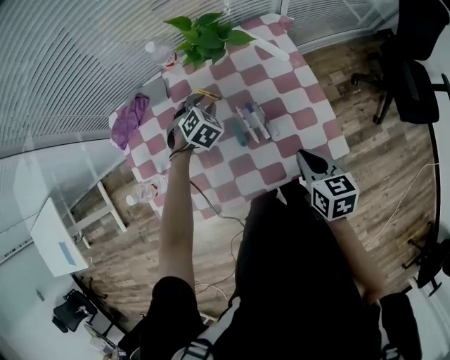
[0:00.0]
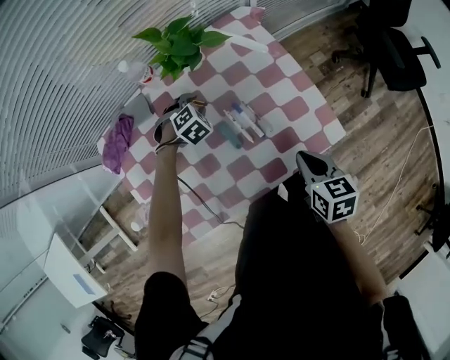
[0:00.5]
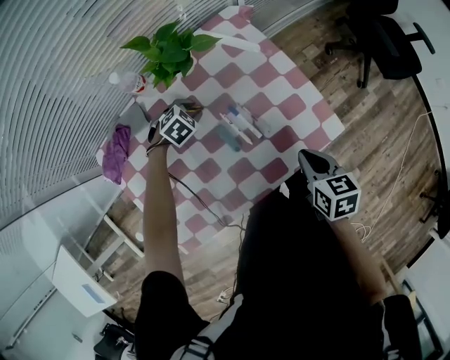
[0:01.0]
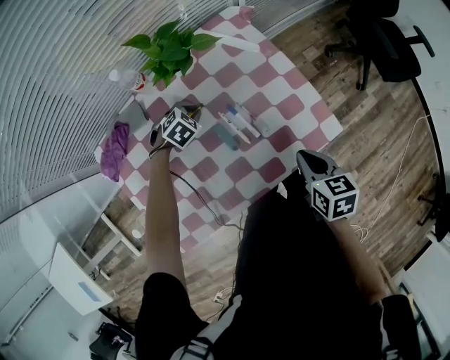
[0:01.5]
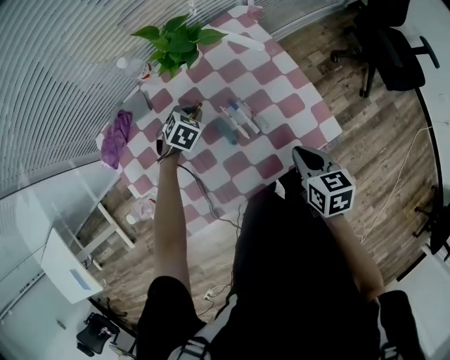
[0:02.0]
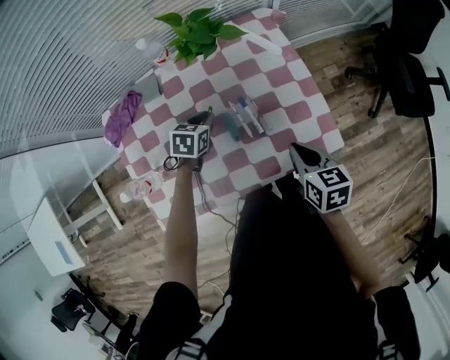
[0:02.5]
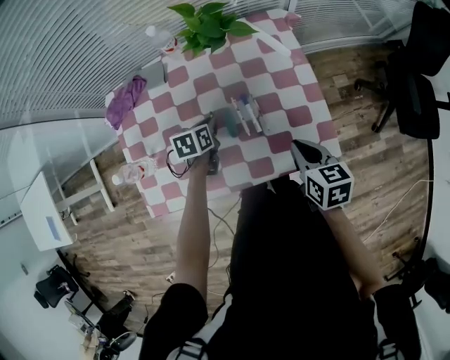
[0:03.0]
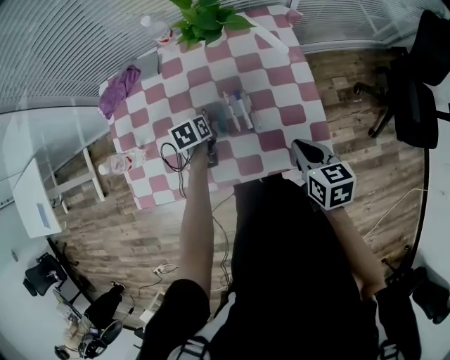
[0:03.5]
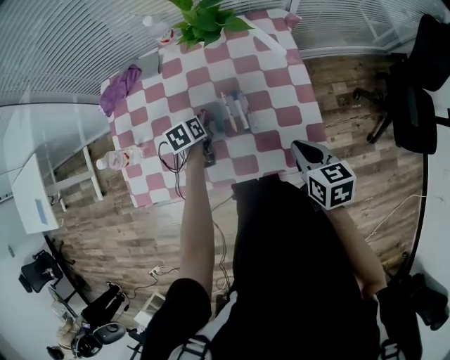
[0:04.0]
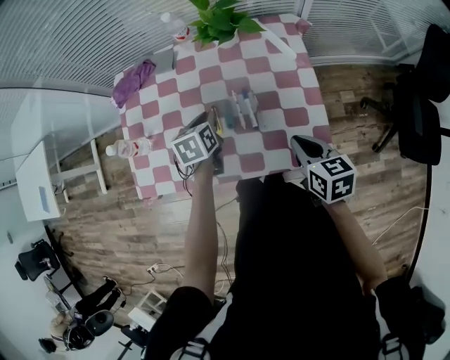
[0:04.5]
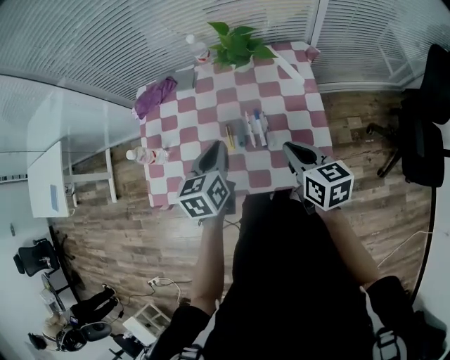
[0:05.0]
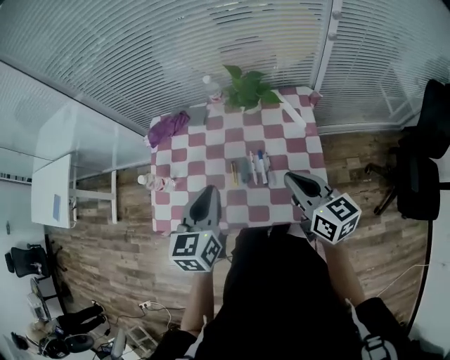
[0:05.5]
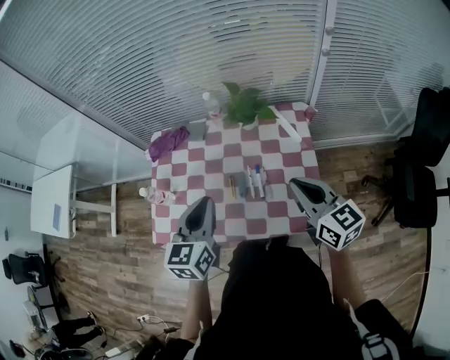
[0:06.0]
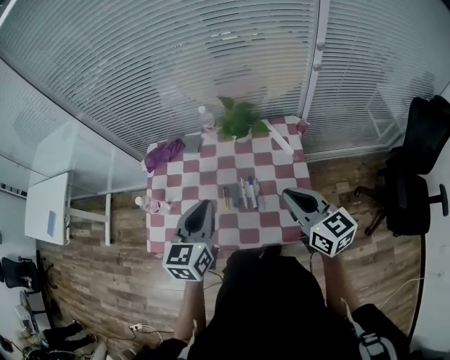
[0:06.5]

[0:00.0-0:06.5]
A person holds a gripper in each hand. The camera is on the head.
0:02.0 to 0:04.5: The left gripper ends up approximately 15 cm from where it was, and rotates around the line of its fingers by roughly 70 degrees, counterclockwise from behind. Meanwhile the right gripper changes its angle by about 30 degrees.
0:04.5 to 0:06.5: Both grippers travel together upward, approximately 25 cm. The left gripper rotates approximately 30 degrees, while the right gripper turns by some 30 degrees.

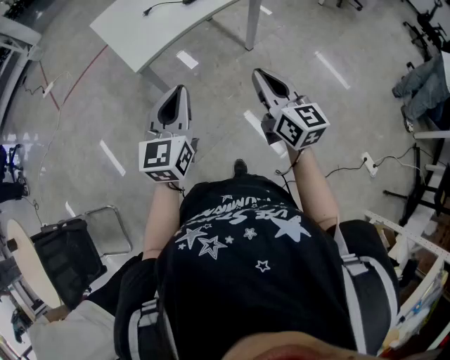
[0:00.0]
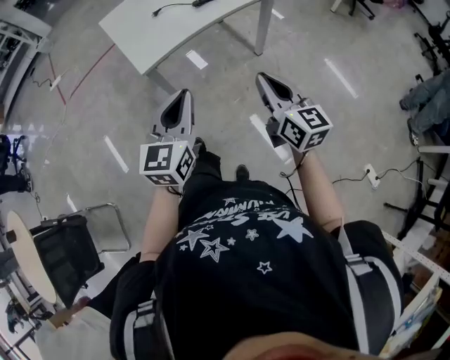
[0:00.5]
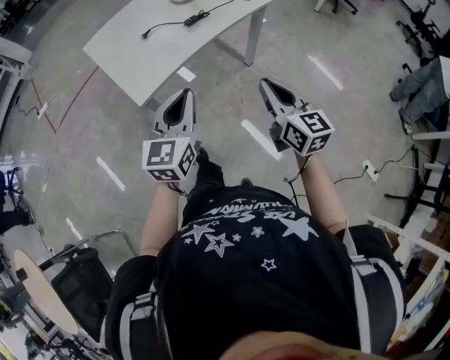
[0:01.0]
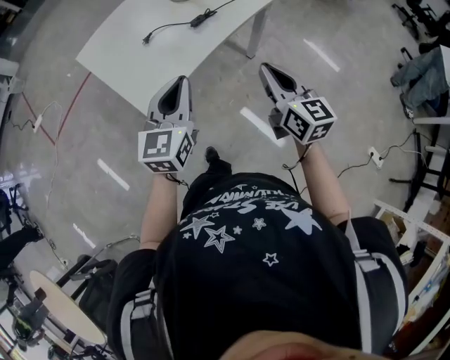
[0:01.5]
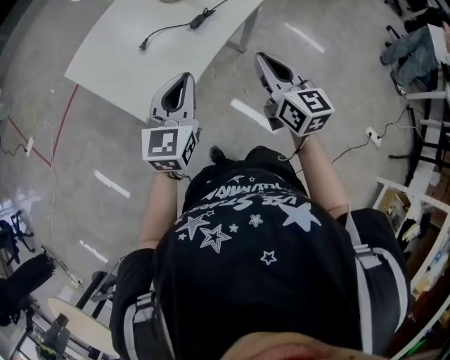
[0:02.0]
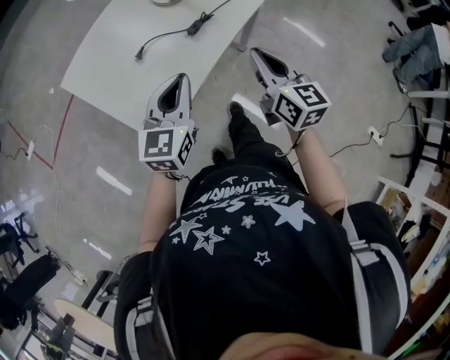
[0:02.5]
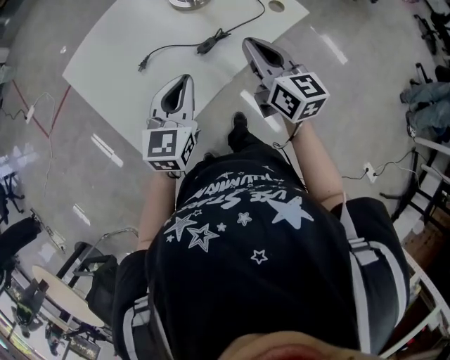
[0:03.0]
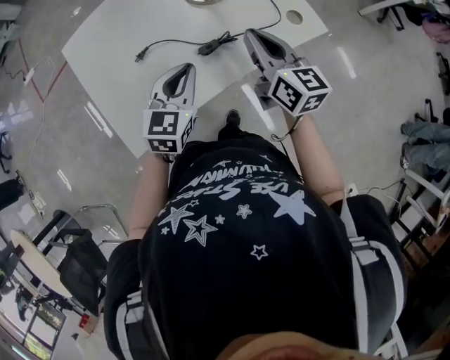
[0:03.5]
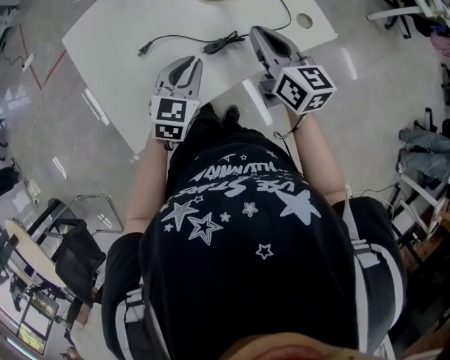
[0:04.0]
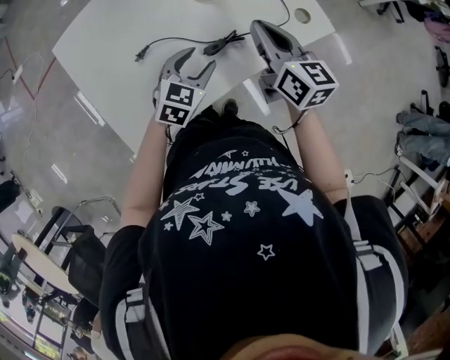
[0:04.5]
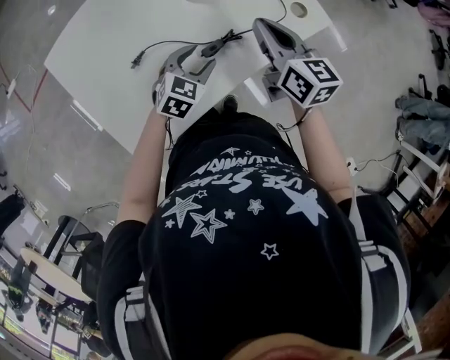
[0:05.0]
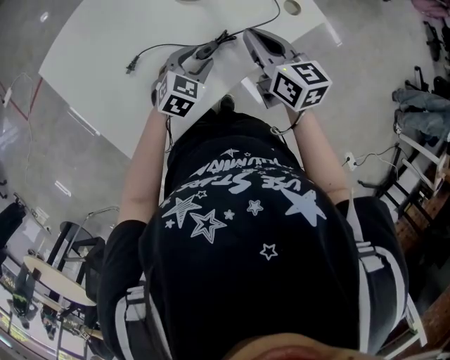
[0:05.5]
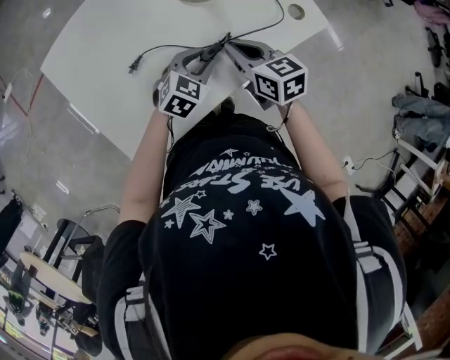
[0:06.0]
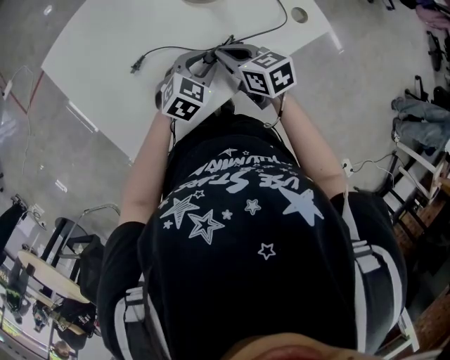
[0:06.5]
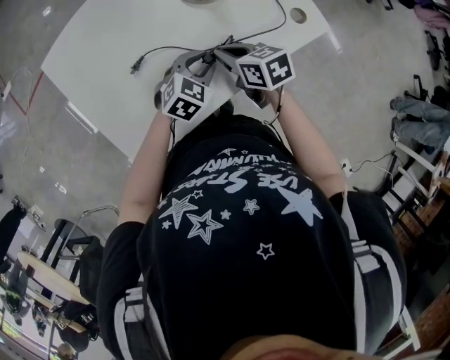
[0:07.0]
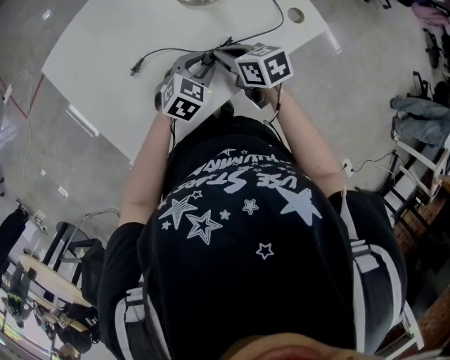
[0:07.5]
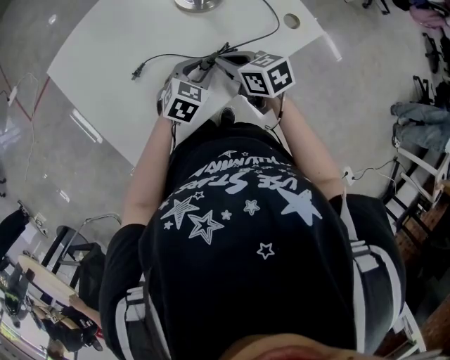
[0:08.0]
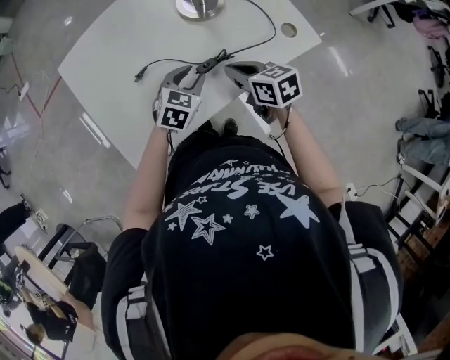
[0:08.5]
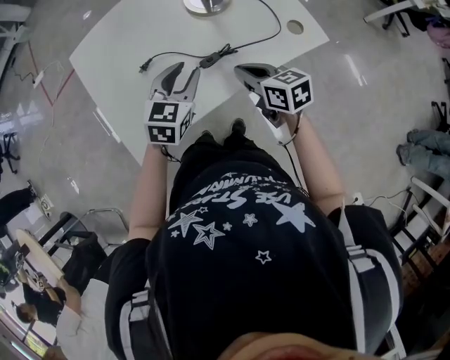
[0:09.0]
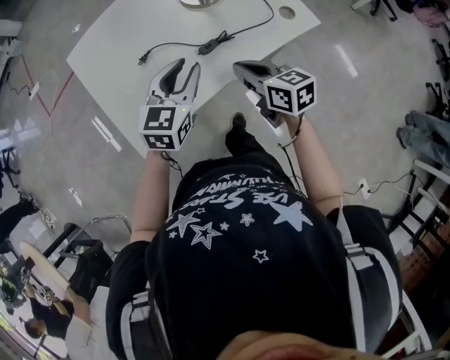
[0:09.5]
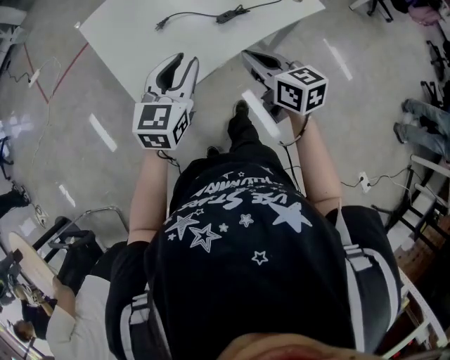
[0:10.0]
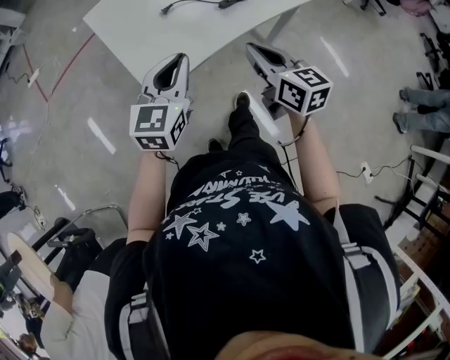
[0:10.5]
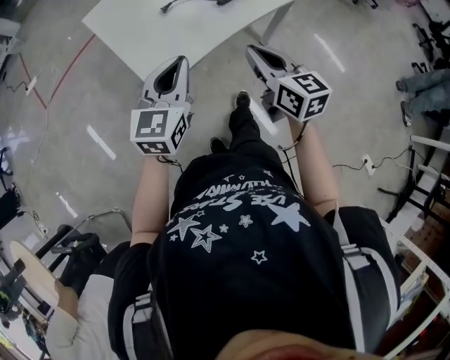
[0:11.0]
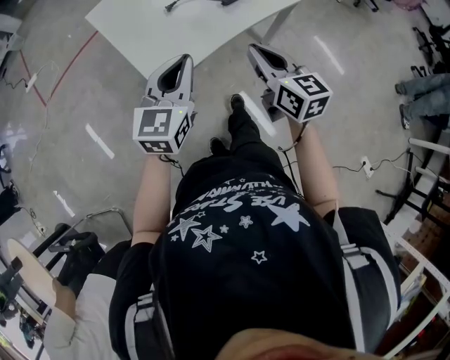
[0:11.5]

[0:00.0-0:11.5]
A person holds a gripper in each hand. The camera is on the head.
0:00.0 to 0:02.0: The left gripper shifts about 30 cm forward, and swivels some 20 degrees. The right gripper moves forward and to the left, approximately 30 cm.
0:02.0 to 0:04.0: The left gripper goes about 25 cm forward and downward, and changes its angle by about 20 degrees. Meanwhile the right gripper is displaced forward by some 30 cm, and swivels roughly 30 degrees.
0:04.0 to 0:06.0: The left gripper travels downward and to the right by roughly 10 cm, turns by roughly 30 degrees, and opens up. The right gripper heads downward, covering approximately 10 cm, and rotates about 20 degrees.
0:06.0 to 0:07.5: The grippers stay close to where they were, moving slightly.
0:07.5 to 0:09.5: The right gripper travels backward and upward by approximately 15 cm; the left gripper travels upward and backward by some 15 cm, and swivels roughly 30 degrees.
0:09.5 to 0:11.5: The right gripper moves backward, to the left and upward, some 25 cm, and rotates approximately 20 degrees; the left gripper is displaced backward and to the left by some 25 cm, and closes up.

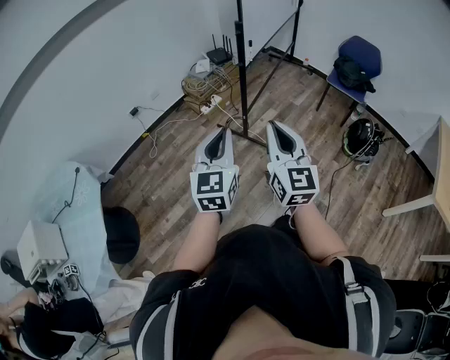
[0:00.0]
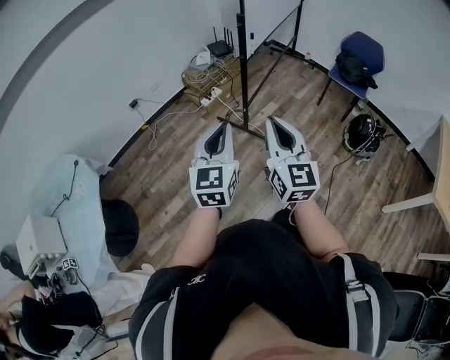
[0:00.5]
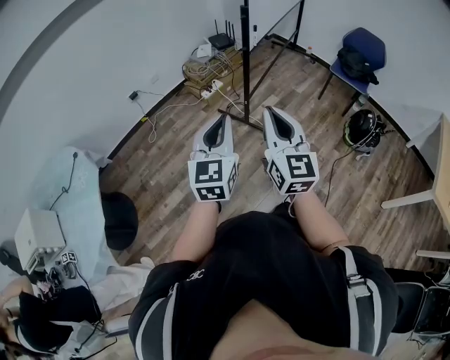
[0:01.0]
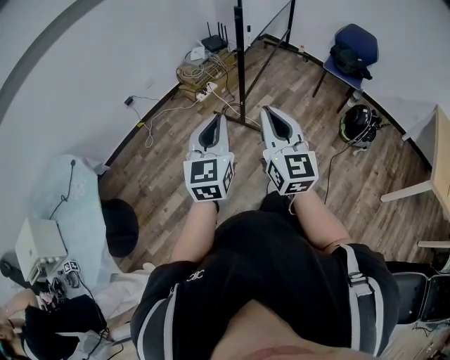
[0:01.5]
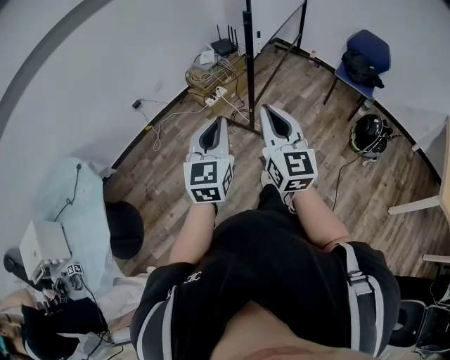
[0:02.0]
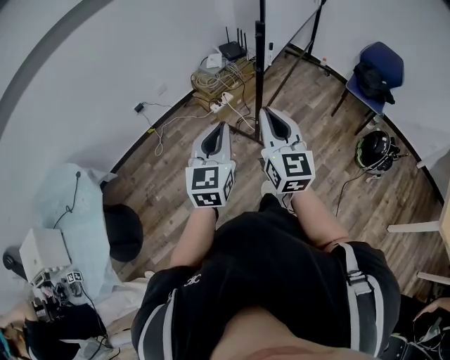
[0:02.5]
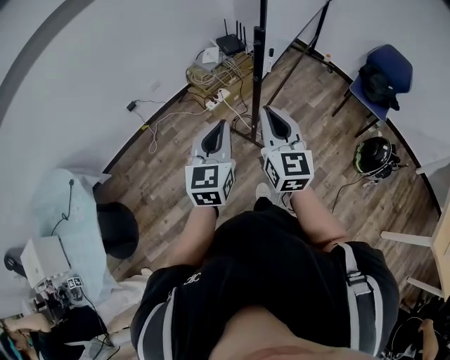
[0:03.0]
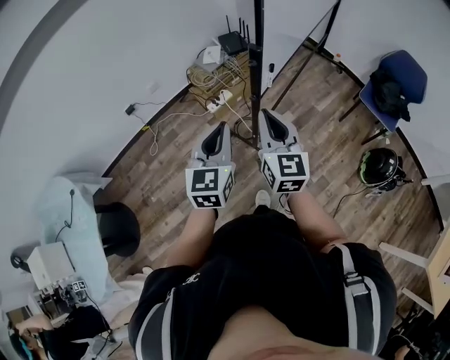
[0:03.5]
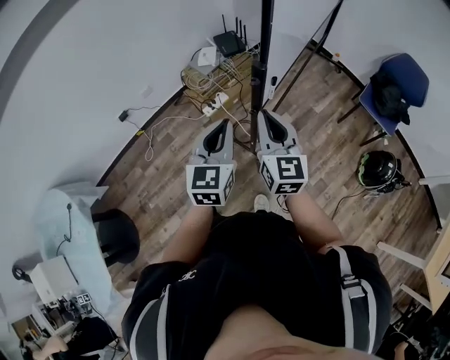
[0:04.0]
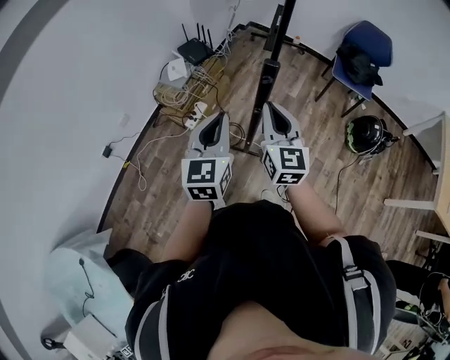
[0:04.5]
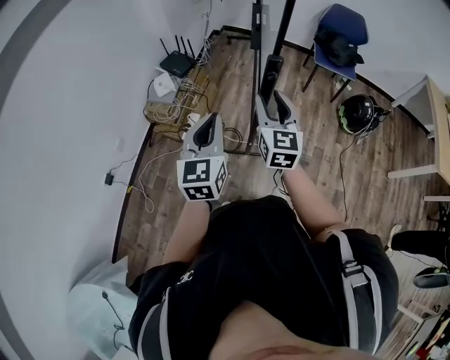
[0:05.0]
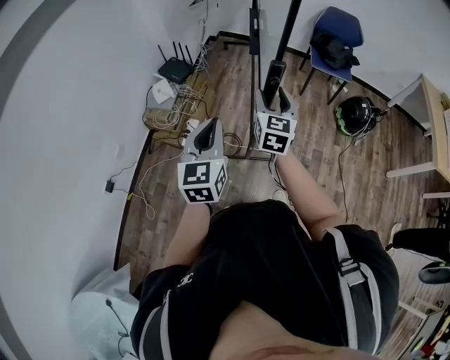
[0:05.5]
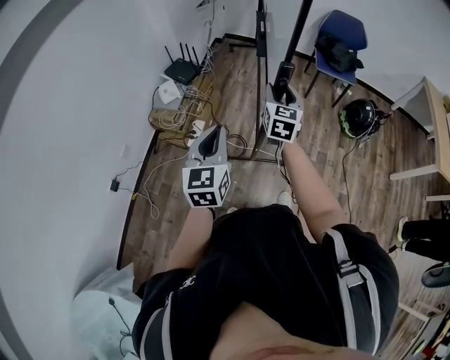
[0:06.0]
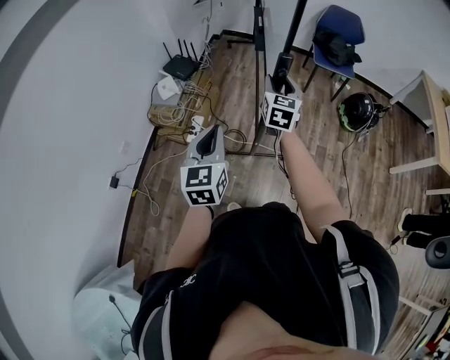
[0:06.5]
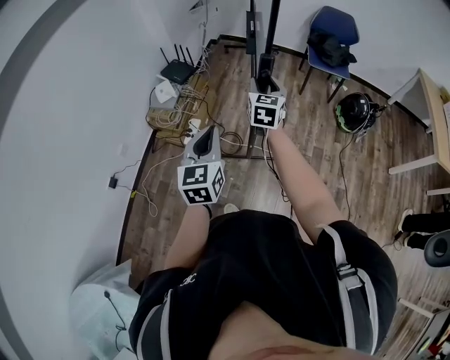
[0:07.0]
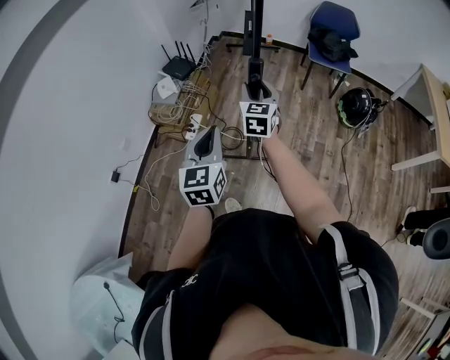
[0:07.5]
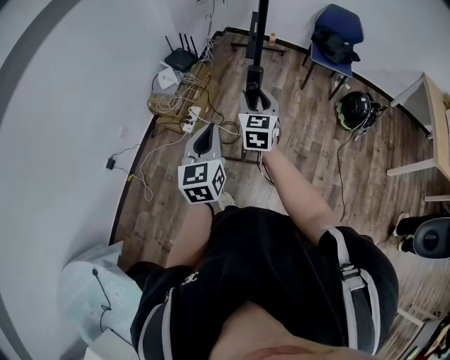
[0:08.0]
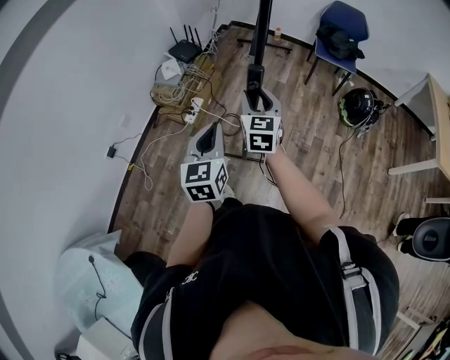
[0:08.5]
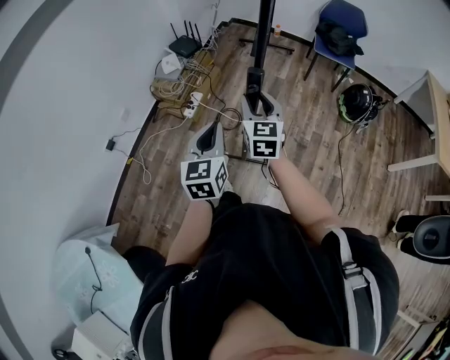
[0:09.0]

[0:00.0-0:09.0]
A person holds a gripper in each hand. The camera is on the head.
0:00.0 to 0:02.0: The left gripper changes place by approximately 5 cm. The right gripper travels forward by approximately 5 cm.
0:02.0 to 0:04.5: The pair of grippers is taken forward, roughly 40 cm. The right gripper turns by roughly 20 degrees.
0:04.5 to 0:07.0: The right gripper travels forward by some 10 cm, changes its angle by about 30 degrees, and opens. Meanwhile the left gripper is displaced backward by approximately 5 cm.
0:07.0 to 0:09.0: The right gripper shifts about 20 cm backward; the left gripper travels backward and to the right by about 15 cm.
